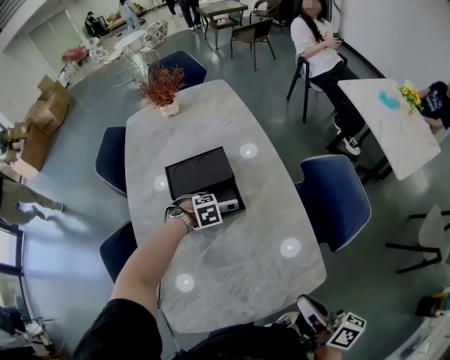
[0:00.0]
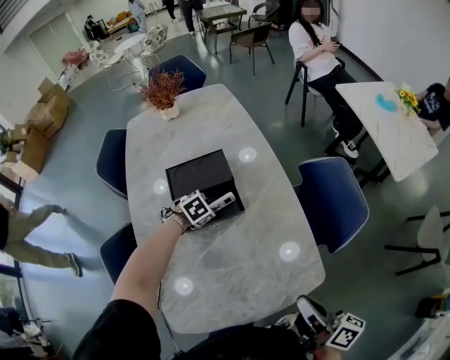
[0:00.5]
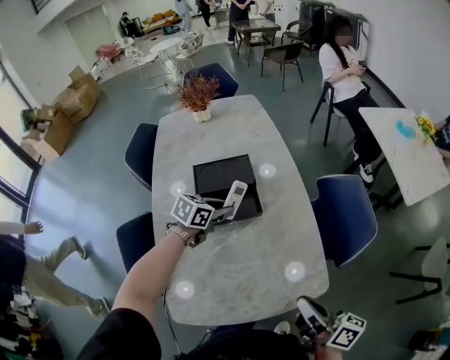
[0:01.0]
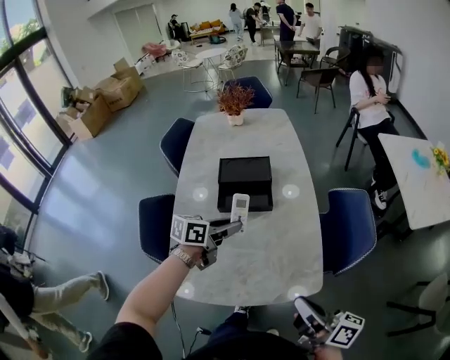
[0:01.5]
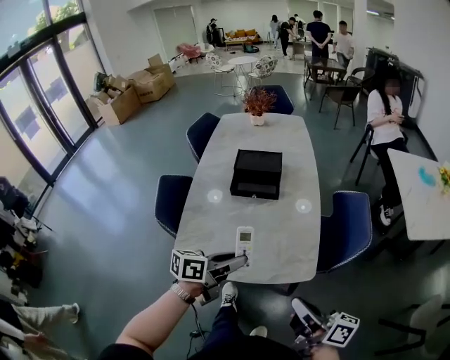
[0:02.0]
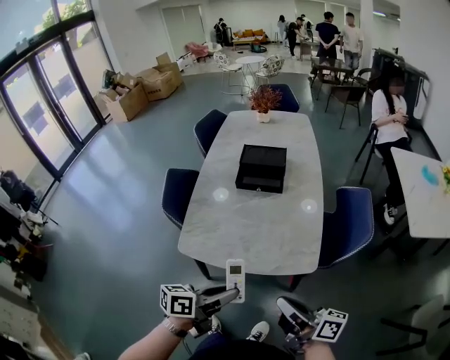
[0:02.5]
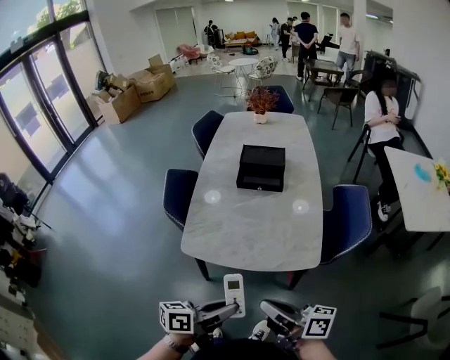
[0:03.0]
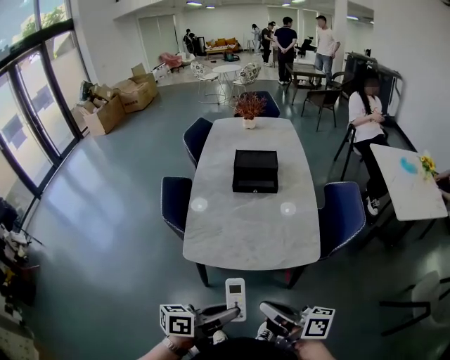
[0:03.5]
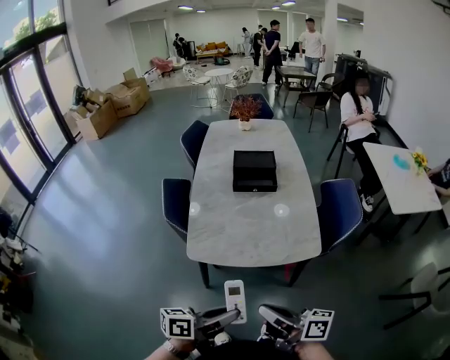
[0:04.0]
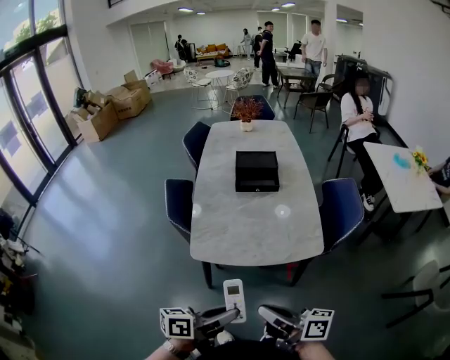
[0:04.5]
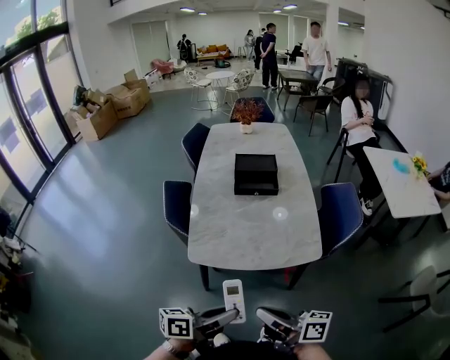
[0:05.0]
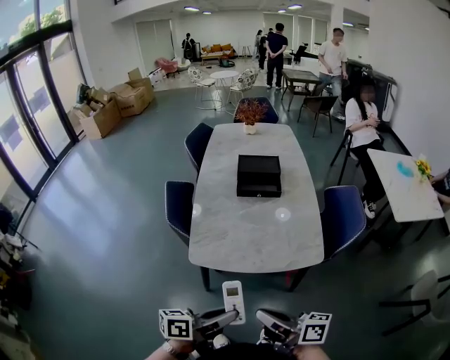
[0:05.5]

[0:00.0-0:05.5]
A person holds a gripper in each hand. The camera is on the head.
0:00.0 to 0:02.0: The right gripper moves roughly 15 cm, and swivels some 30 degrees. The left gripper changes place by some 40 cm, and angles its fingers upward, by about 70 degrees.
0:02.0 to 0:03.5: The right gripper goes about 20 cm to the left and backward. The left gripper shifts roughly 20 cm backward.
0:03.5 to 0:05.5: The right gripper shifts by some 5 cm.

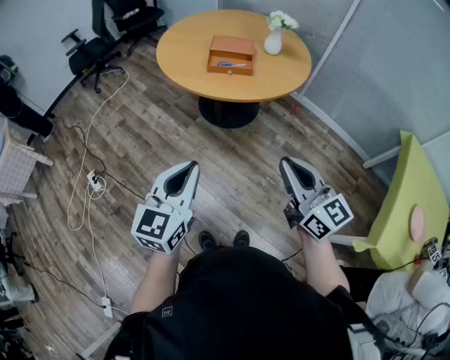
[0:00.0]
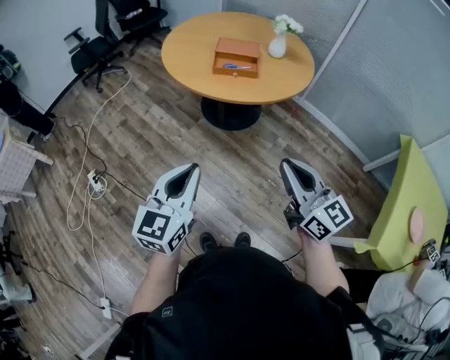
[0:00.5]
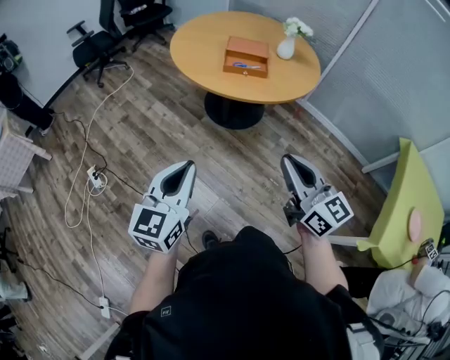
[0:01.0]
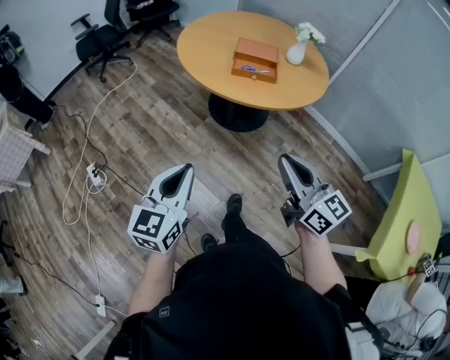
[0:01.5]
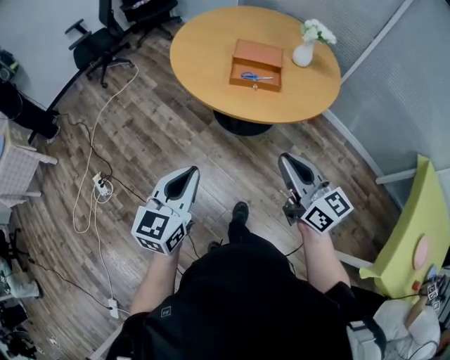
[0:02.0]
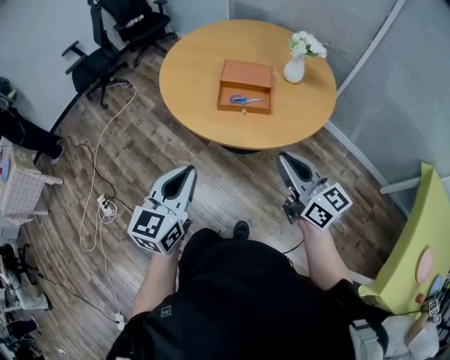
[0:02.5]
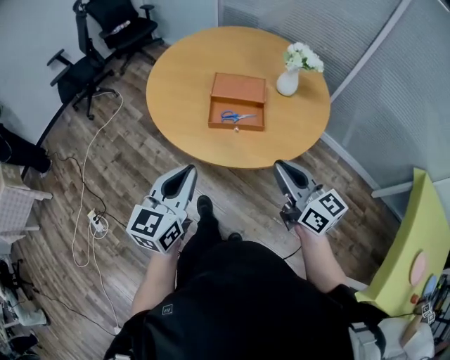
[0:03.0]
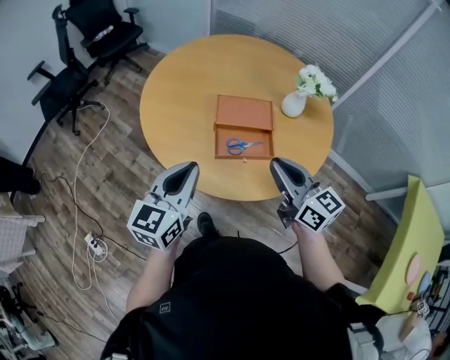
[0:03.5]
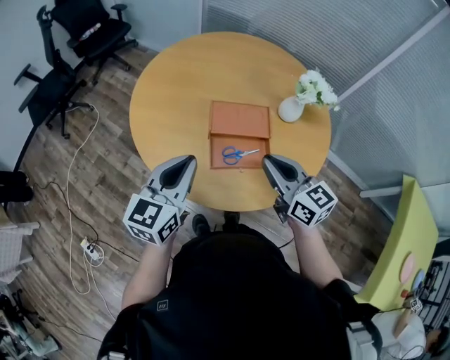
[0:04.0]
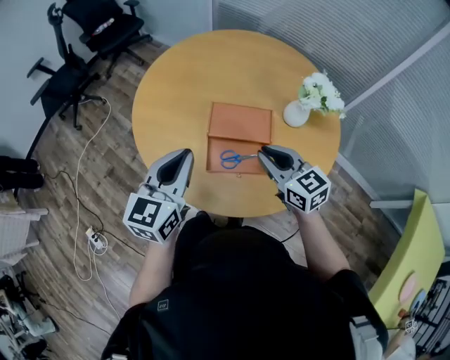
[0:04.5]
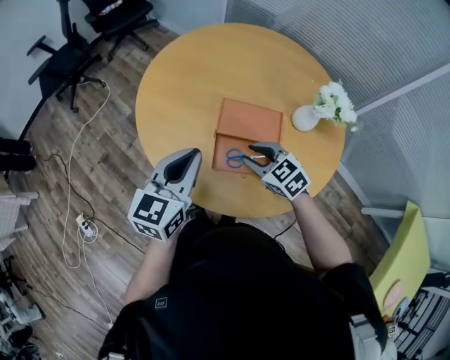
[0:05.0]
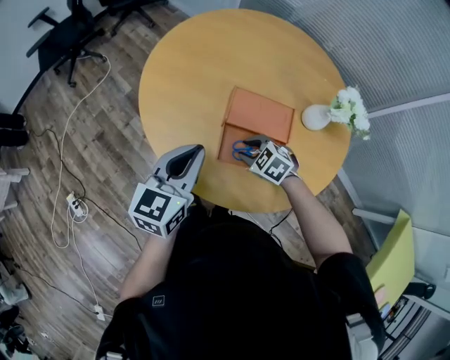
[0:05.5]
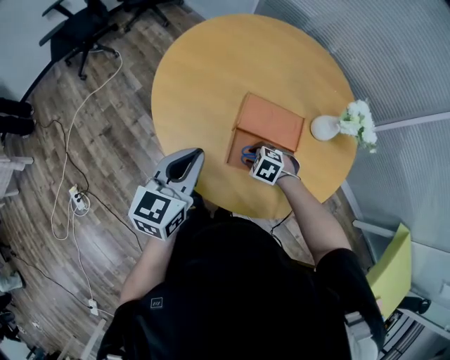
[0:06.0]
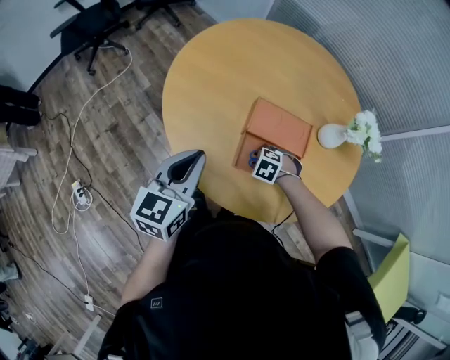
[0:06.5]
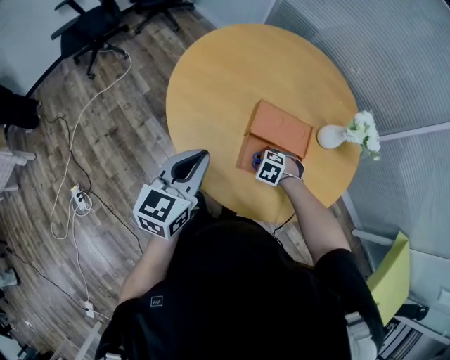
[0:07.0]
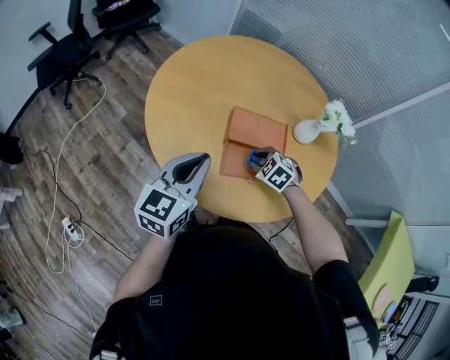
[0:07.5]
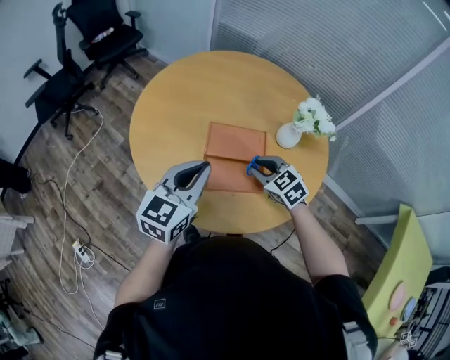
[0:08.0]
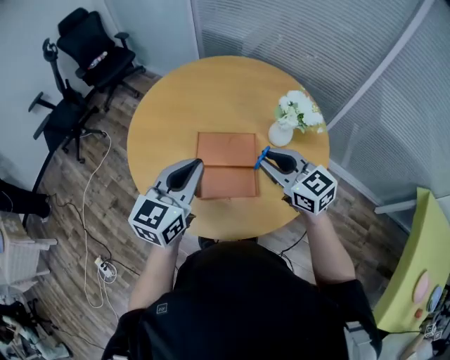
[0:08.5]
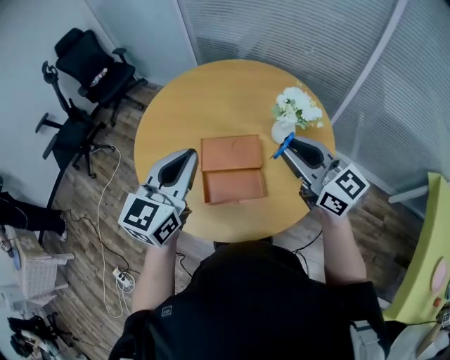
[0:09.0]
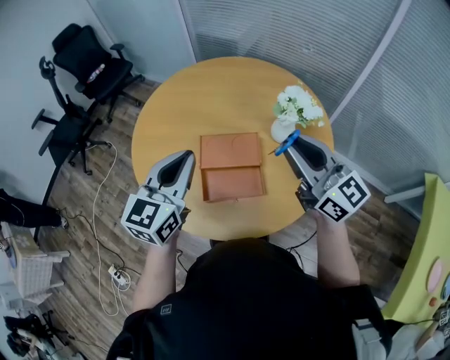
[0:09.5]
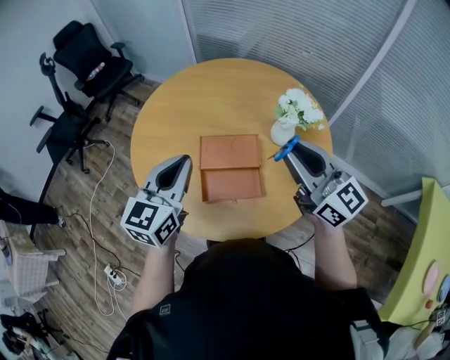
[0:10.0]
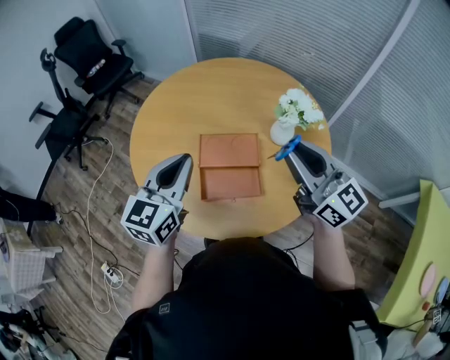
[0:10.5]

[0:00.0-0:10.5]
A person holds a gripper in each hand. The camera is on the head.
0:00.0 to 0:02.0: The right gripper goes approximately 20 cm forward. The left gripper moves forward and to the left, about 20 cm.
0:02.0 to 0:04.0: The grippers both shift forward by roughly 40 cm.
0:04.0 to 0:06.5: The left gripper moves about 10 cm, while the right gripper is displaced downward by about 30 cm, and tips its fingers downward by some 70 degrees.
0:06.5 to 0:08.5: The left gripper shifts by roughly 20 cm, and turns by some 20 degrees. Meanwhile the right gripper heads upward, covering approximately 30 cm, and tips its fingers upward by about 70 degrees.
0:08.5 to 0:10.5: The right gripper goes some 10 cm upward, and rotates approximately 30 degrees.

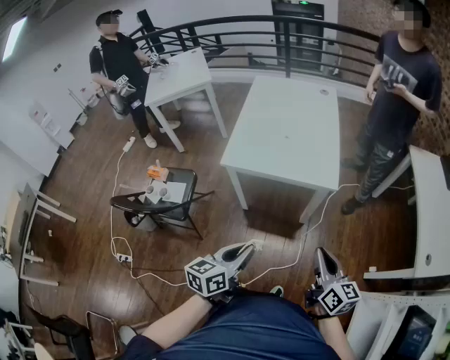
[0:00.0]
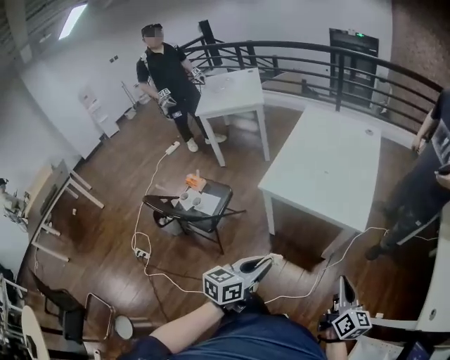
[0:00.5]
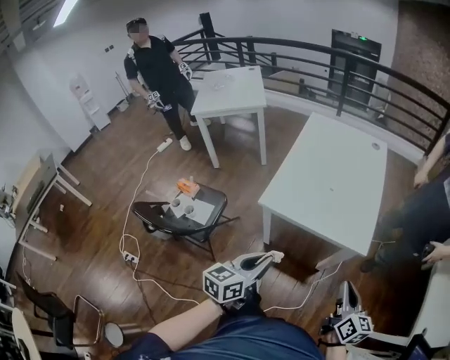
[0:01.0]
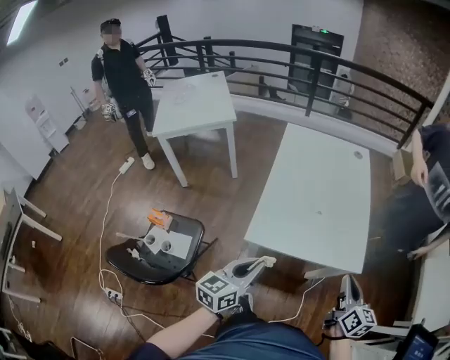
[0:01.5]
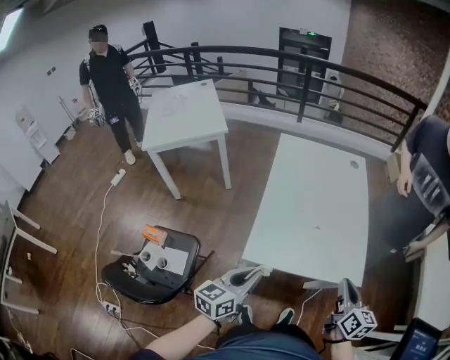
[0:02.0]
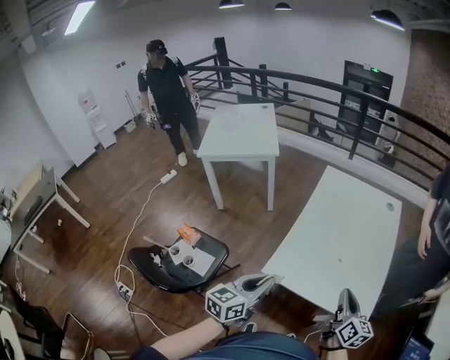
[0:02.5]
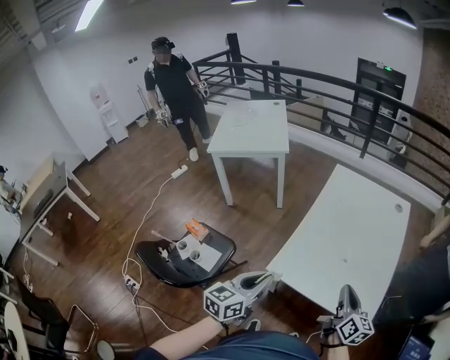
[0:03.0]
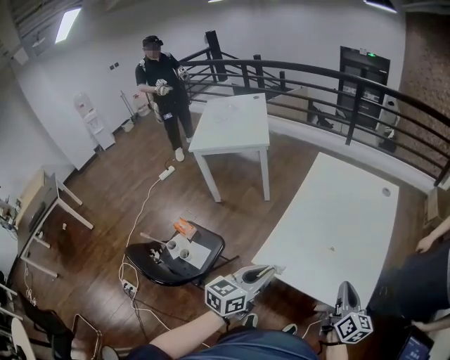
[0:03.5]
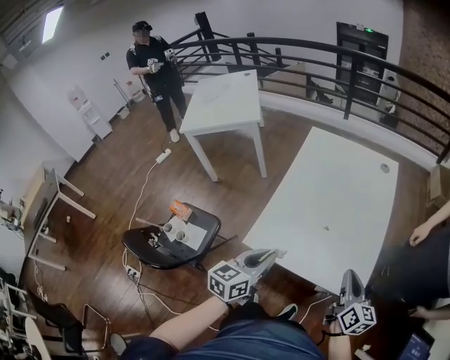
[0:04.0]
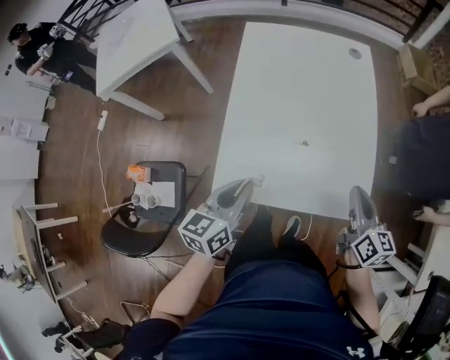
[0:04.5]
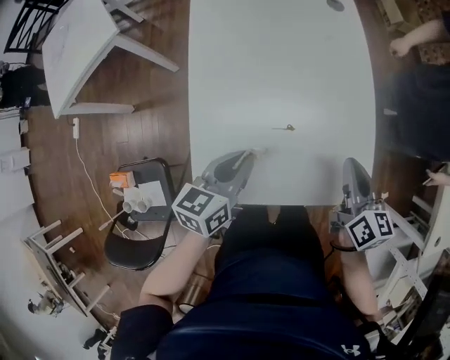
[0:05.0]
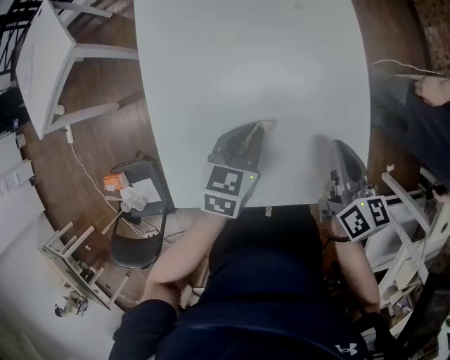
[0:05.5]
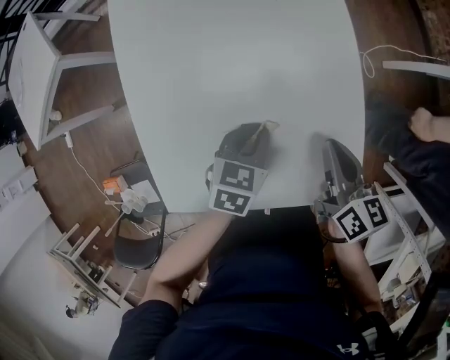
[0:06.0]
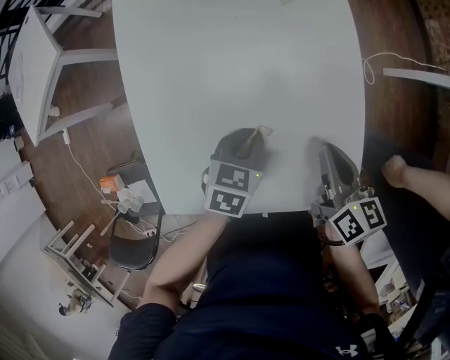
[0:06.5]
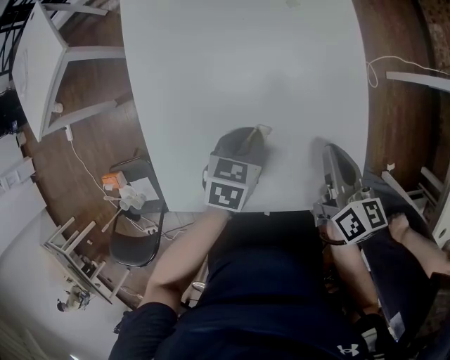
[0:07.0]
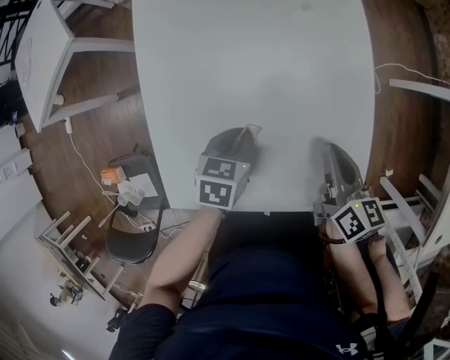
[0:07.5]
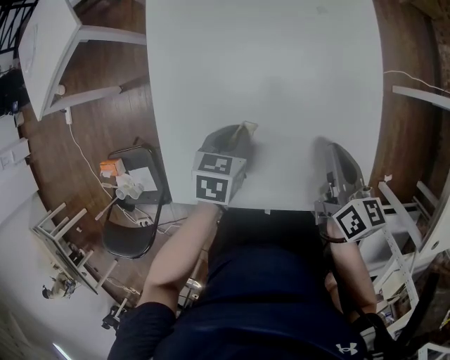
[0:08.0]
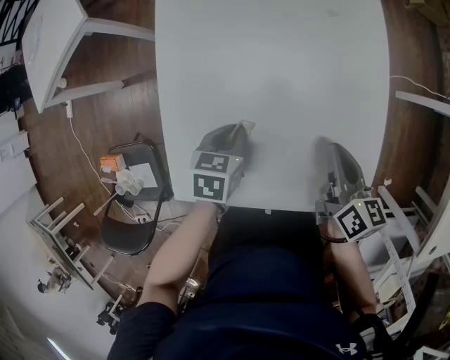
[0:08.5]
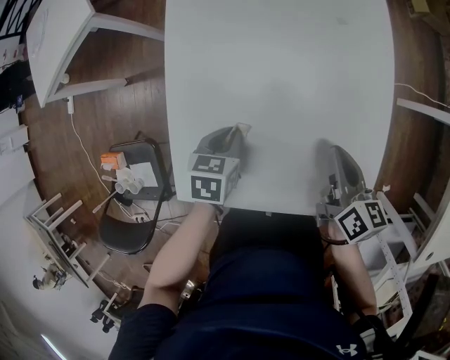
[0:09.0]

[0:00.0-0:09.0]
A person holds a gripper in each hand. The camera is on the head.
0:00.0 to 0:02.0: The left gripper shifts some 30 cm forward and to the left. The right gripper moves forward, approximately 25 cm.
0:02.0 to 0:04.5: The two grippers go about 15 cm forward, to the right and downward.
0:04.5 to 0:07.0: The left gripper is displaced downward, forward and to the right by approximately 30 cm, and angles its fingers downward, by roughly 40 degrees. The right gripper shifts roughly 15 cm downward and forward.
0:07.0 to 0:09.0: The left gripper goes roughly 10 cm to the left, while the right gripper is displaced to the left by approximately 5 cm.

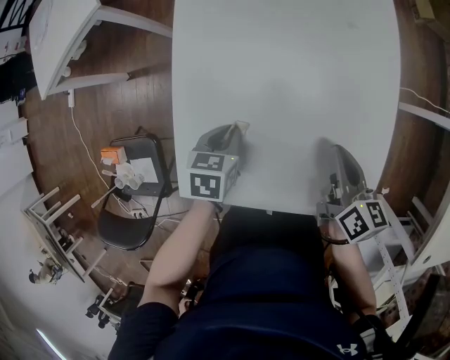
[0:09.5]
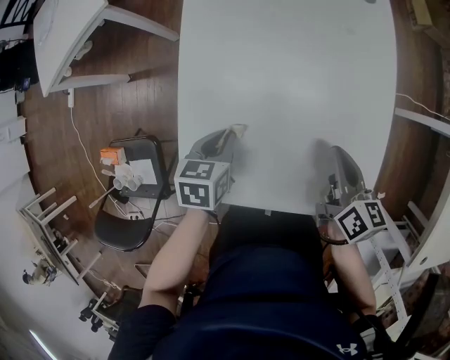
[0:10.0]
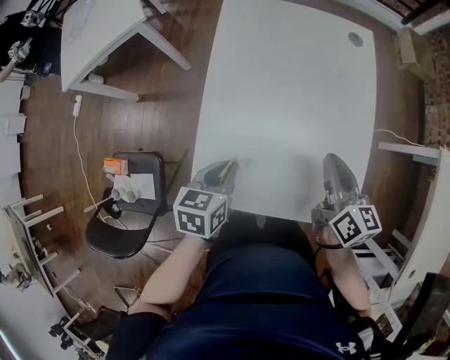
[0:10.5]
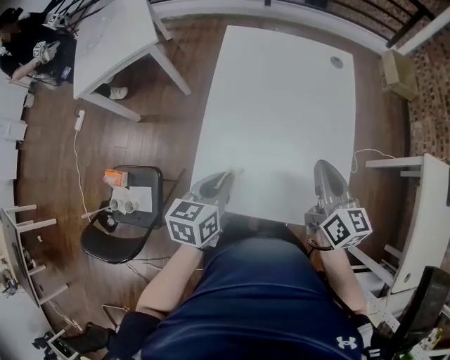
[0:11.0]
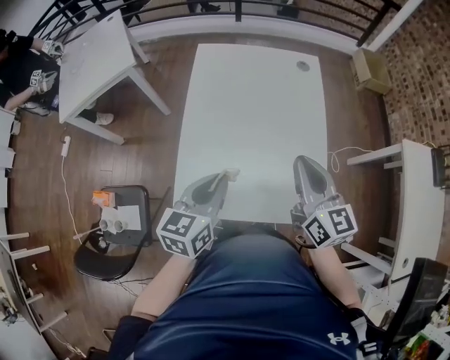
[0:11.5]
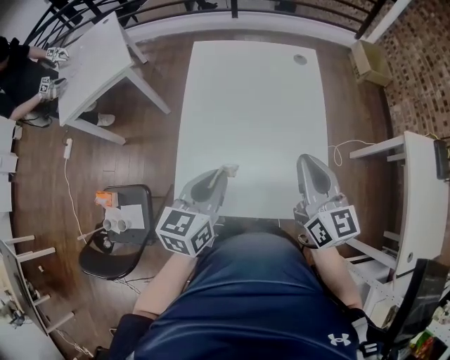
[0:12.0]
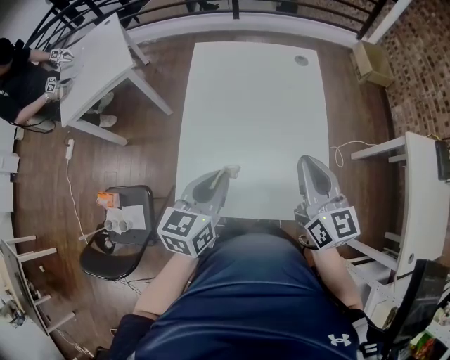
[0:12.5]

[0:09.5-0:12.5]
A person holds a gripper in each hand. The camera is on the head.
0:09.5 to 0:11.0: The right gripper goes some 15 cm upward, and rotates approximately 20 degrees. The left gripper moves upward and backward, roughly 20 cm, and rotates roughly 30 degrees.
0:11.0 to 0:12.5: The right gripper goes about 5 cm upward. The left gripper heads upward and to the right, covering roughly 10 cm.
